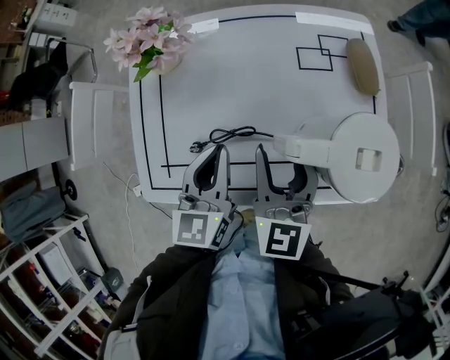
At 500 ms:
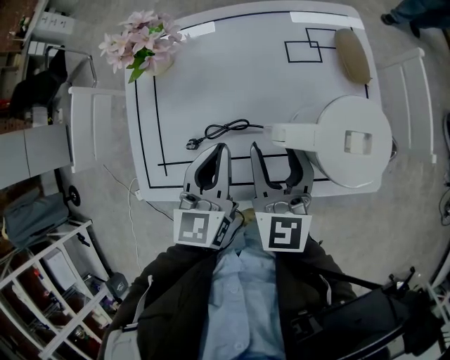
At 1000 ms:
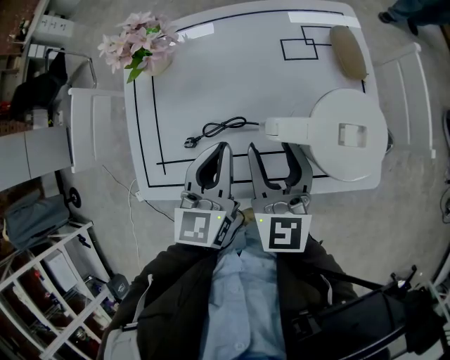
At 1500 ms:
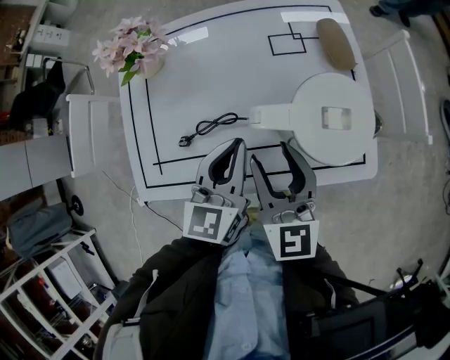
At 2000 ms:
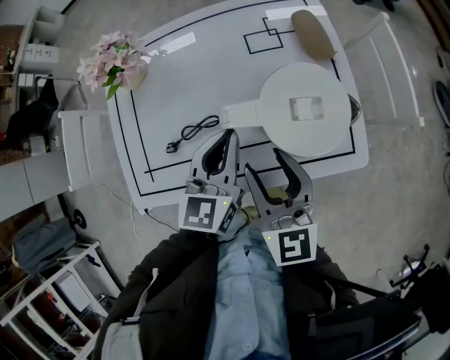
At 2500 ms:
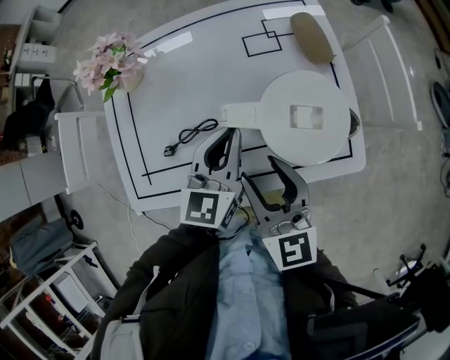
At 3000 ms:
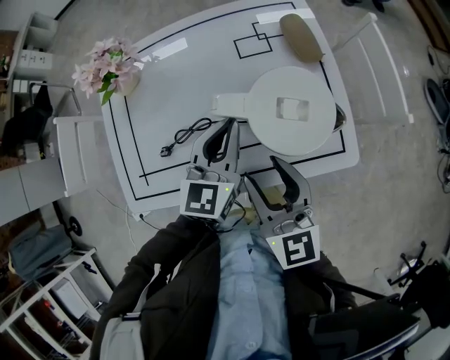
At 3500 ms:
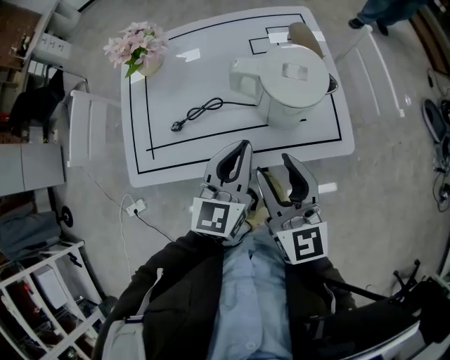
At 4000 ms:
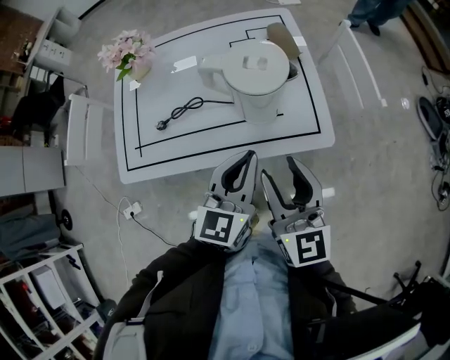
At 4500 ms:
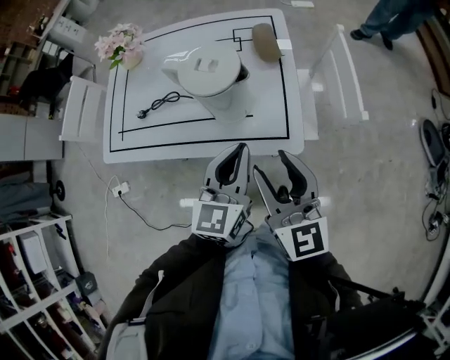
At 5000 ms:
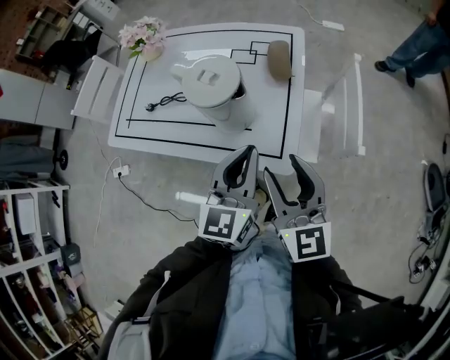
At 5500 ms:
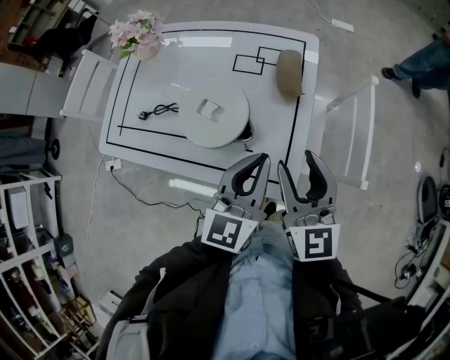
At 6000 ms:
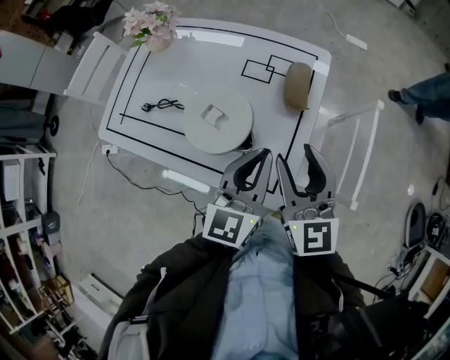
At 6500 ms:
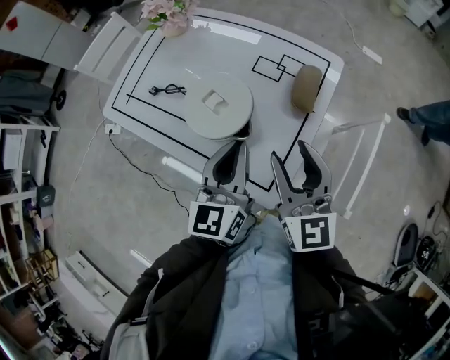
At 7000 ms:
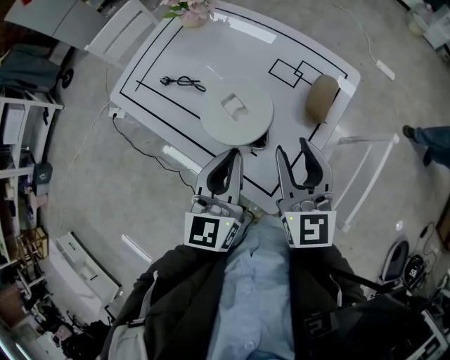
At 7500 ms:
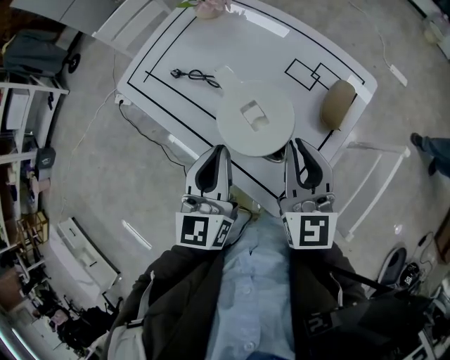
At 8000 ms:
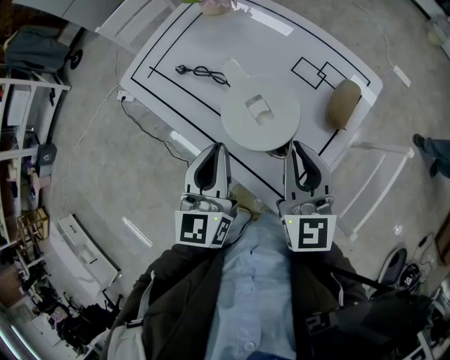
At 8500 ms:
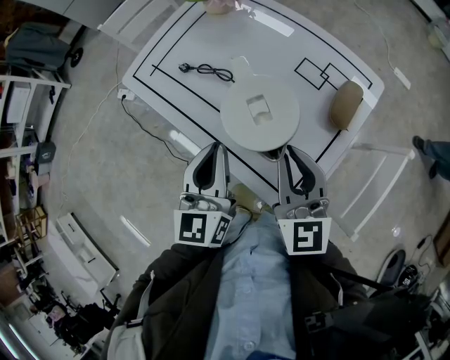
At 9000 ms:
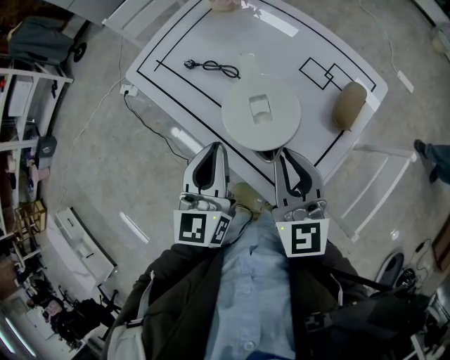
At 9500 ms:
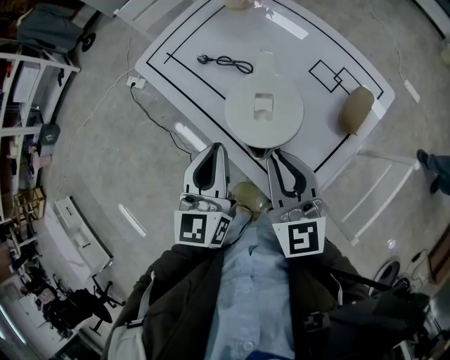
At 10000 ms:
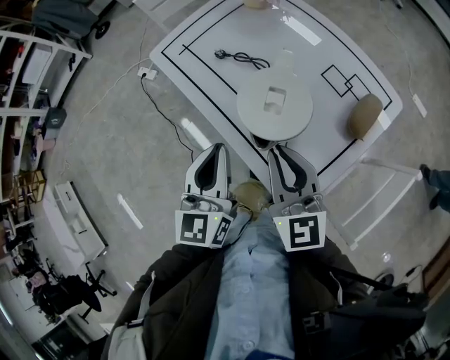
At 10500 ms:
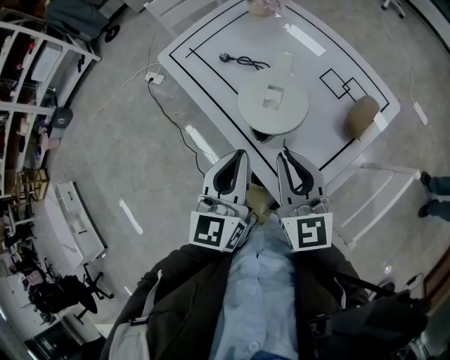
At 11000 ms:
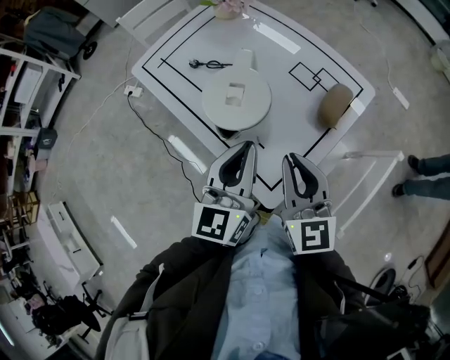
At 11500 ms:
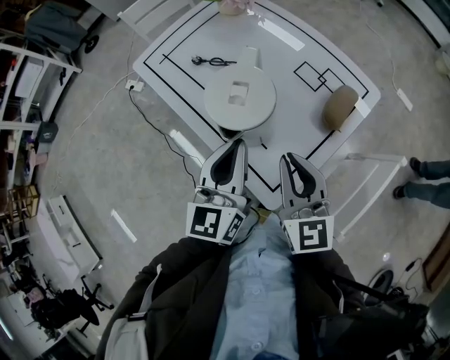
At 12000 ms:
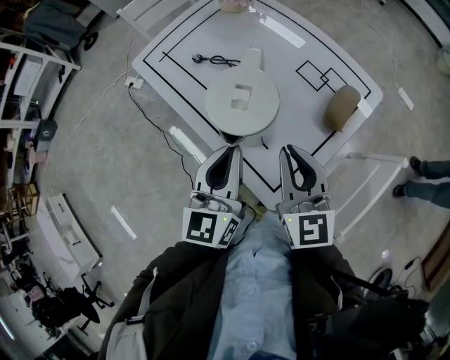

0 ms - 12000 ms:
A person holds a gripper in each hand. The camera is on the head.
0 ms - 2000 ms: The right gripper travels backward and to the right by roughly 10 cm; the left gripper travels to the right by some 10 cm.
2000 ms - 4000 ms: The two grippers go approximately 15 cm backward and to the right.
4000 ms - 6000 ms: The right gripper heads forward and to the right, covering about 25 cm, and rotates some 30 degrees. The left gripper travels to the right and forward by some 20 cm, and turns by roughly 30 degrees.
6000 ms - 8000 ms: The left gripper shifts about 15 cm to the left, and changes its angle by approximately 30 degrees. Meanwhile the right gripper shifts some 5 cm to the left, and closes.
8000 ms - 10000 ms: The left gripper travels to the left by roughly 5 cm, while the right gripper goes roughly 10 cm to the left.
10000 ms - 12000 ms: The two grippers go approximately 10 cm to the right.

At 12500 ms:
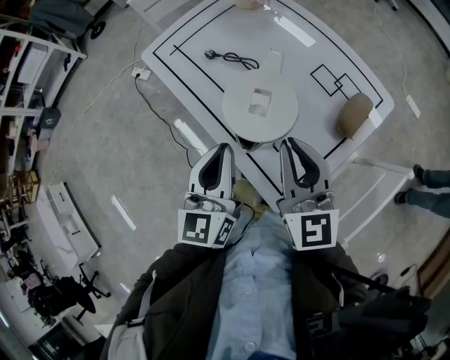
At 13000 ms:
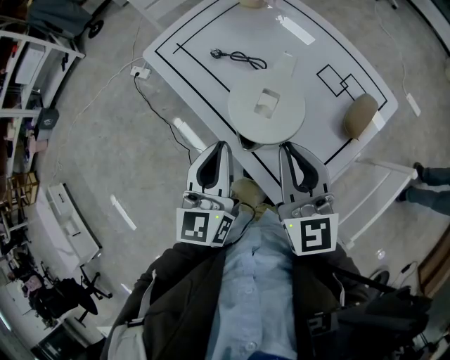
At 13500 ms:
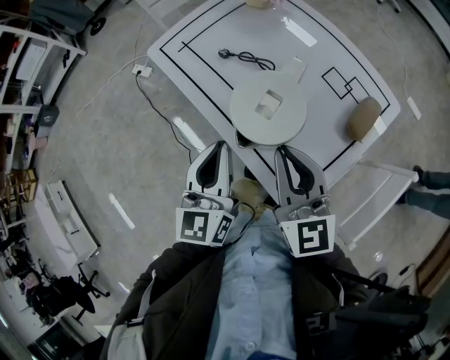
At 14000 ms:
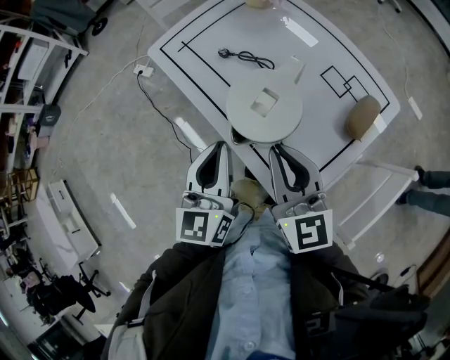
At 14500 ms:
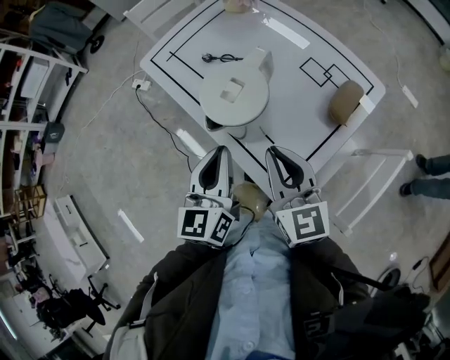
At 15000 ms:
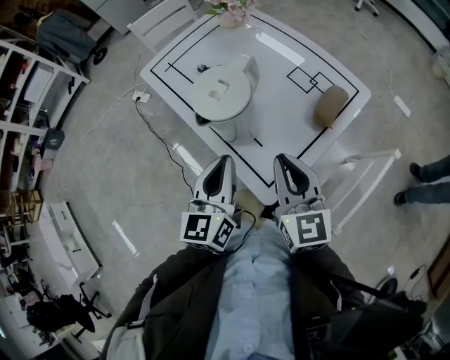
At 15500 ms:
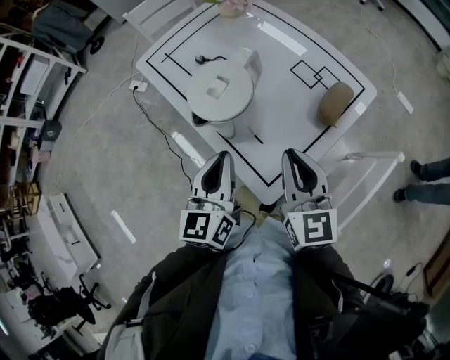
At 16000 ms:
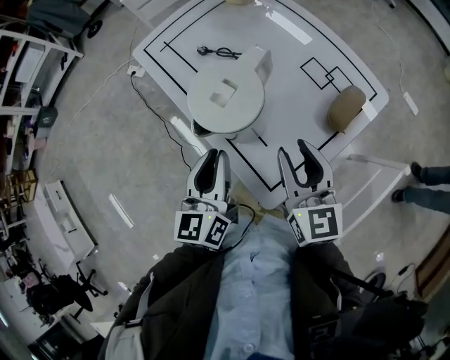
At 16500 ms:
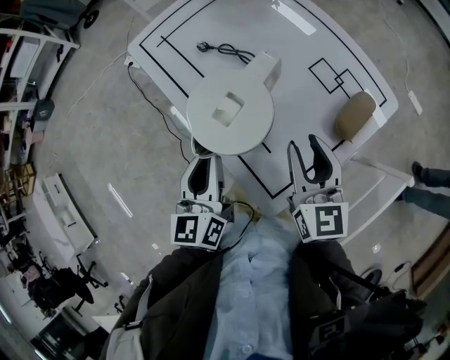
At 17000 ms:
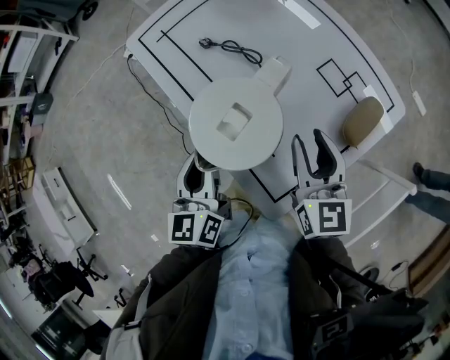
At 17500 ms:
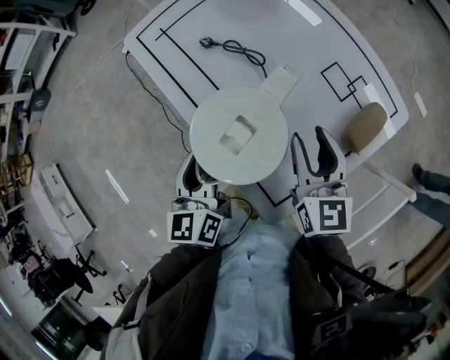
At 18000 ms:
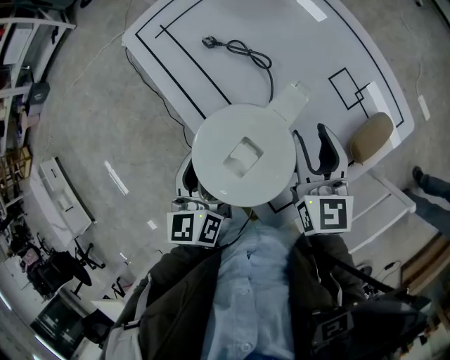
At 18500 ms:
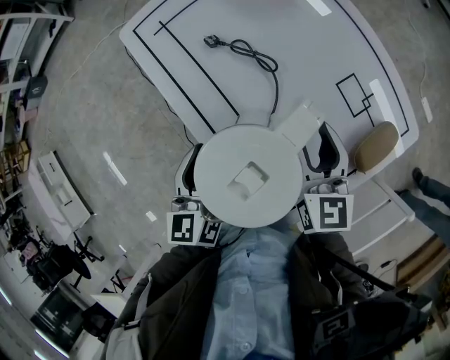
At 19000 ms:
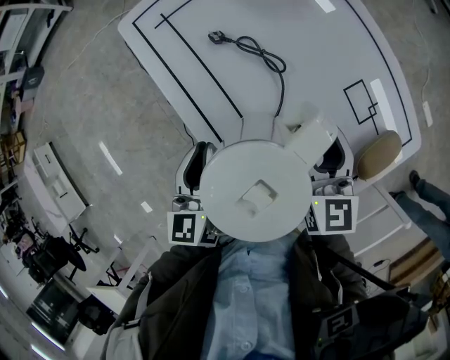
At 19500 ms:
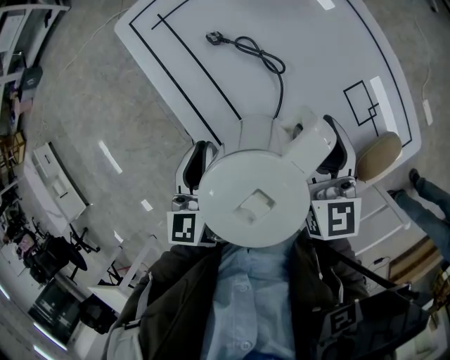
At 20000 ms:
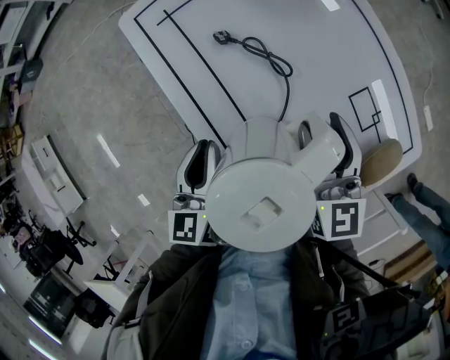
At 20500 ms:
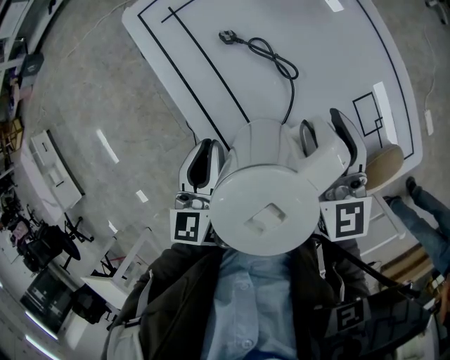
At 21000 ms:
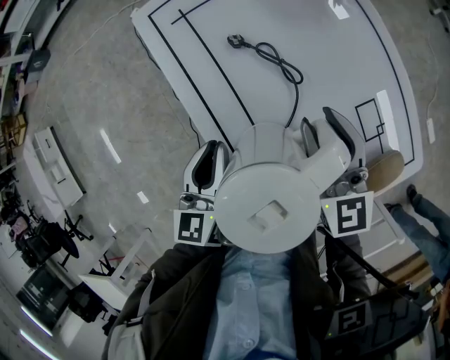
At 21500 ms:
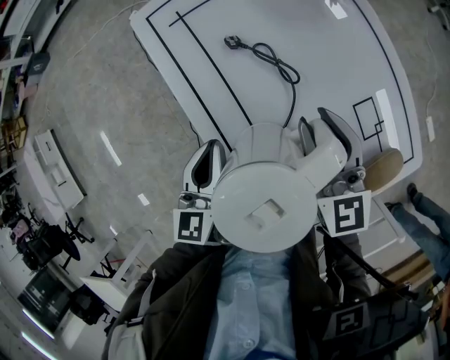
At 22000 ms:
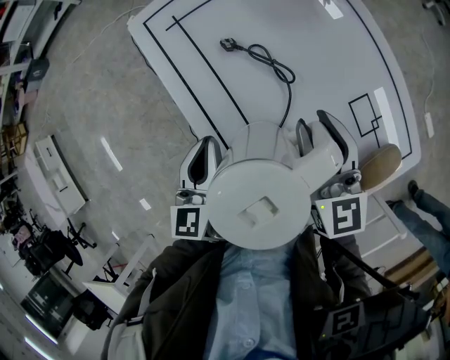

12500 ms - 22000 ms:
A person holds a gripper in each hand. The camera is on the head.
12500 ms - 14500 ms: The right gripper shifts about 5 cm backward.
14500 ms - 16500 ms: The right gripper moves to the right and forward, about 10 cm, and opens its fingers. Meanwhile the left gripper shifts some 5 cm downward.
16500 ms - 18000 ms: Both grippers move forward, approximately 5 cm.
18000 ms - 20000 ms: The right gripper moves forward, some 10 cm.
20000 ms - 22000 ms: The grippers stay close to where they were, moving slightly.

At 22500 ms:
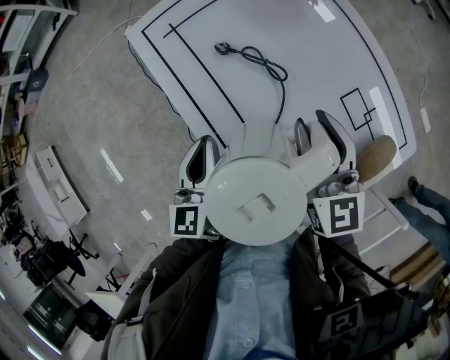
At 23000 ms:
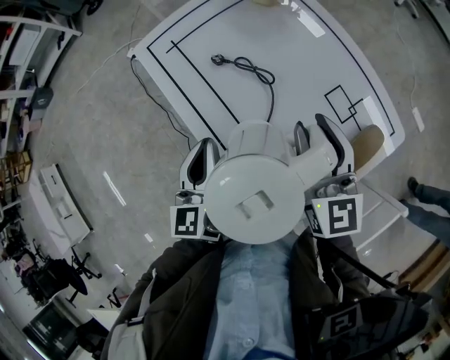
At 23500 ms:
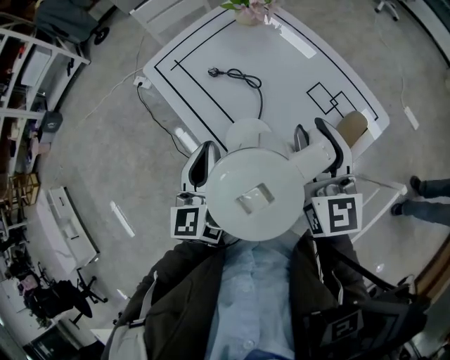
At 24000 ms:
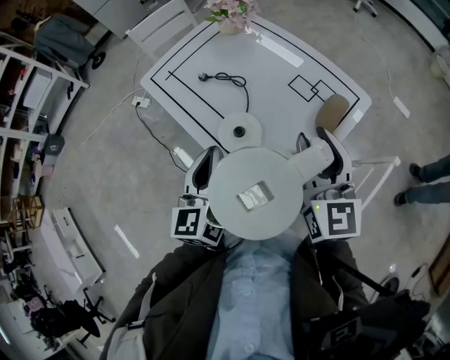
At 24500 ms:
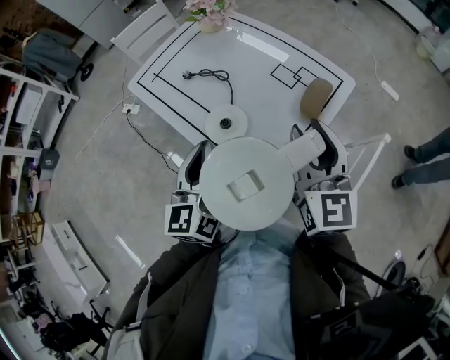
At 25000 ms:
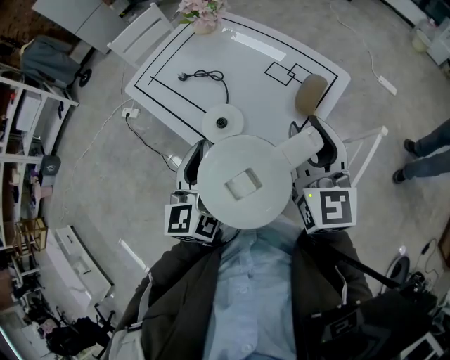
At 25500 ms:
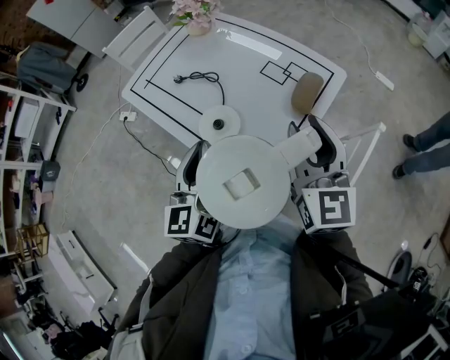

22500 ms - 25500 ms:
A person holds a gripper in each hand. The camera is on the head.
22500 ms - 24000 ms: The left gripper moves upward, backward and to the right, approximately 20 cm, and swivels approximately 20 degrees, while the right gripper shifts approximately 20 cm backward and upward.
24000 ms - 25500 ms: The right gripper moves roughly 5 cm.

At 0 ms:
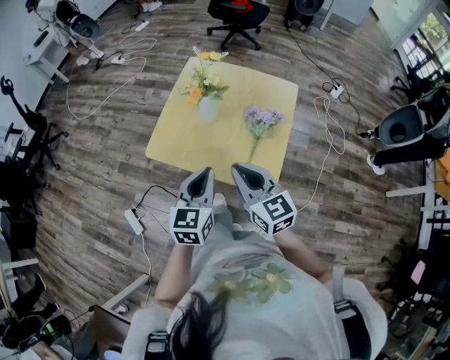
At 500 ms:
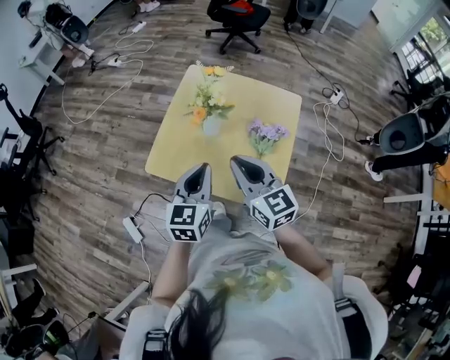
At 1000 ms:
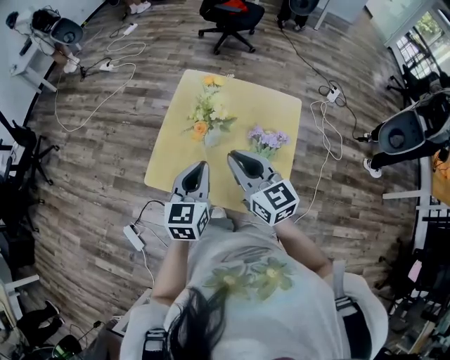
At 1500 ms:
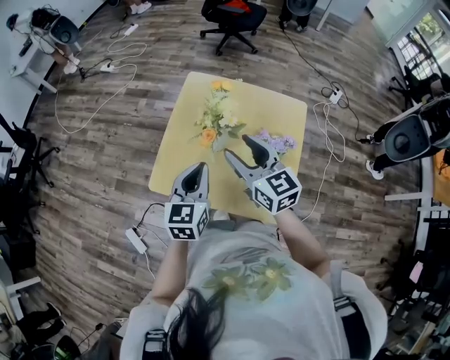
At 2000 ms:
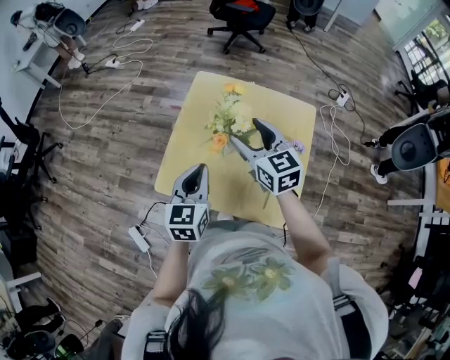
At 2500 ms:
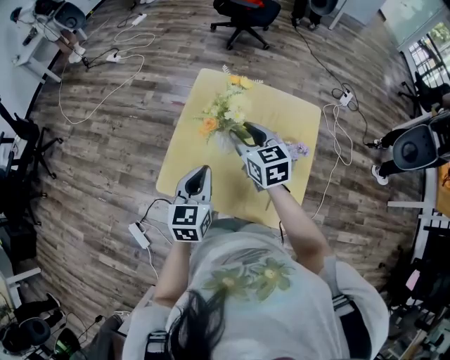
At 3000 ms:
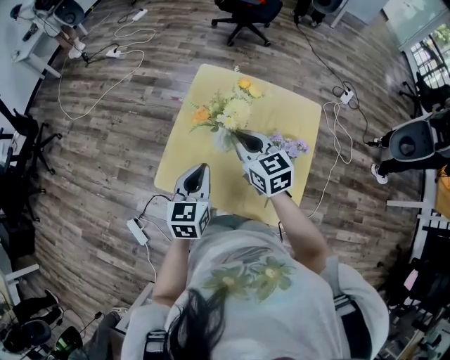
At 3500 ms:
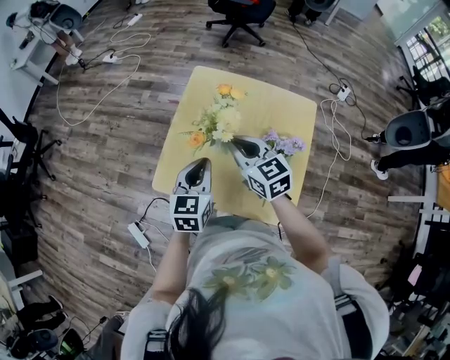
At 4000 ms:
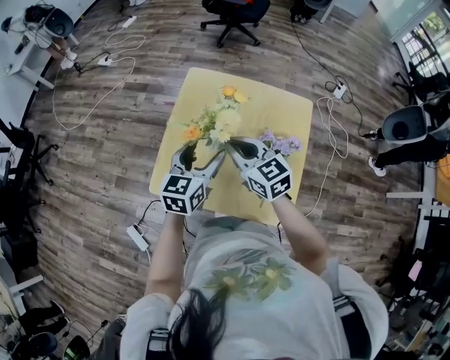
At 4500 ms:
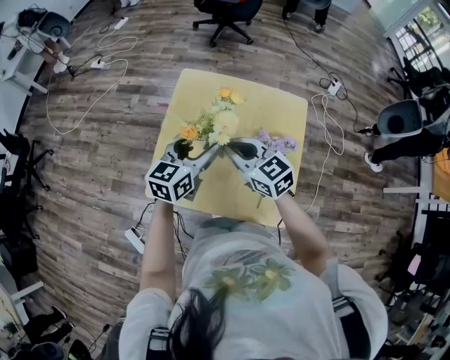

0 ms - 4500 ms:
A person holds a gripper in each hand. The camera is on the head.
0 ms - 2000 ms: Both grippers travel together forward, approximately 30 cm. The right gripper opens up.
2000 ms - 4500 ms: The left gripper travels forward and to the right by approximately 10 cm, swivels about 20 degrees, and opens. Meanwhile the right gripper is displaced downward by about 5 cm, and closes its fingers.
